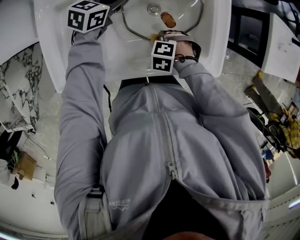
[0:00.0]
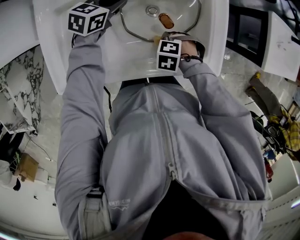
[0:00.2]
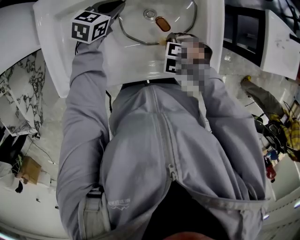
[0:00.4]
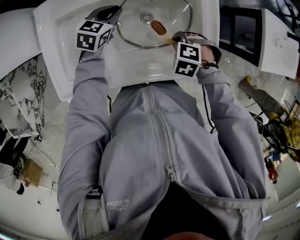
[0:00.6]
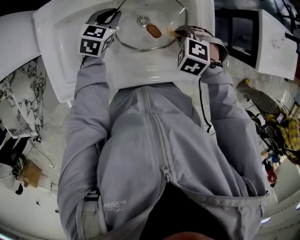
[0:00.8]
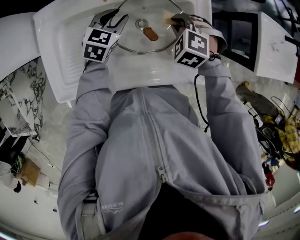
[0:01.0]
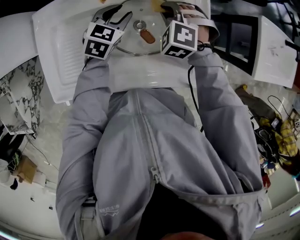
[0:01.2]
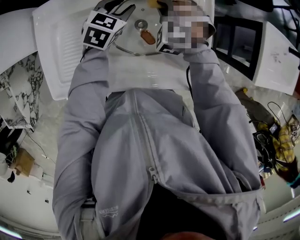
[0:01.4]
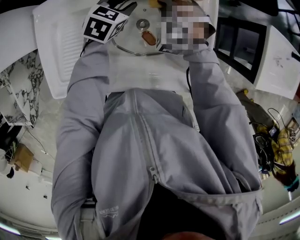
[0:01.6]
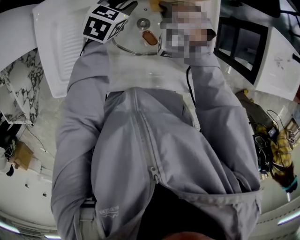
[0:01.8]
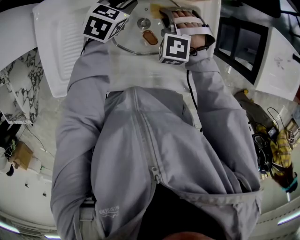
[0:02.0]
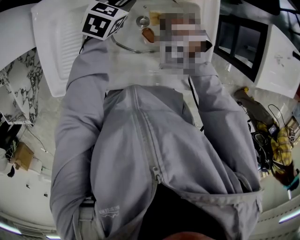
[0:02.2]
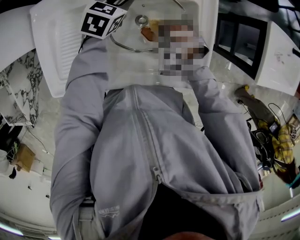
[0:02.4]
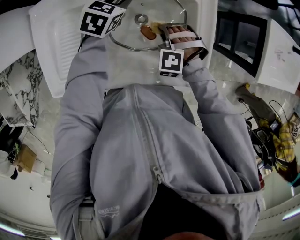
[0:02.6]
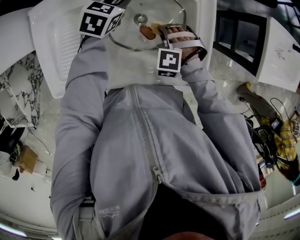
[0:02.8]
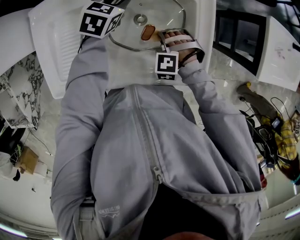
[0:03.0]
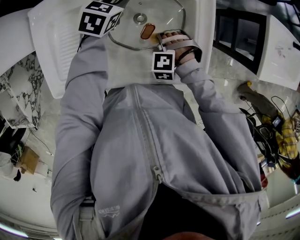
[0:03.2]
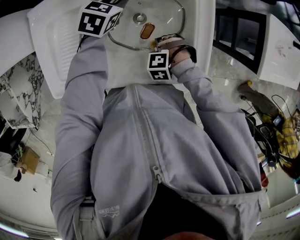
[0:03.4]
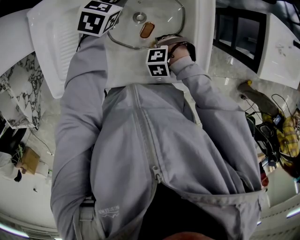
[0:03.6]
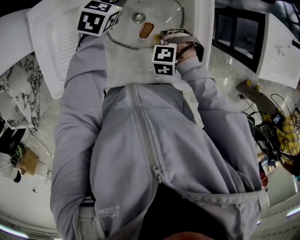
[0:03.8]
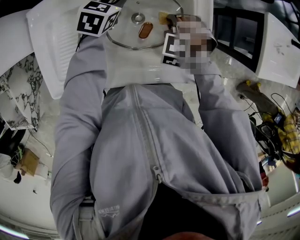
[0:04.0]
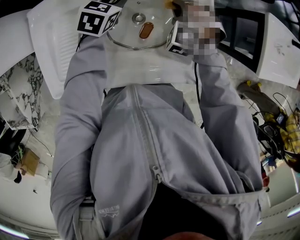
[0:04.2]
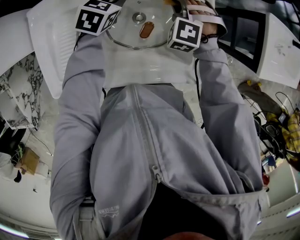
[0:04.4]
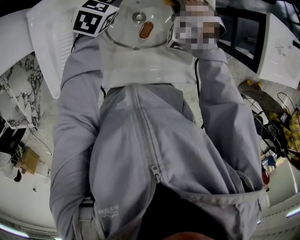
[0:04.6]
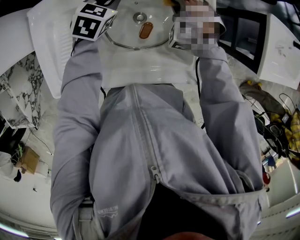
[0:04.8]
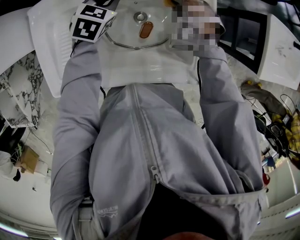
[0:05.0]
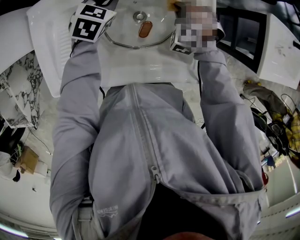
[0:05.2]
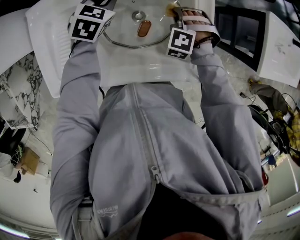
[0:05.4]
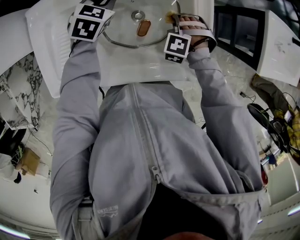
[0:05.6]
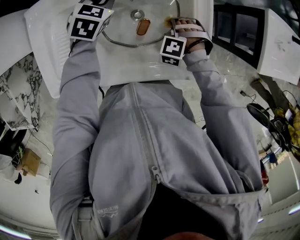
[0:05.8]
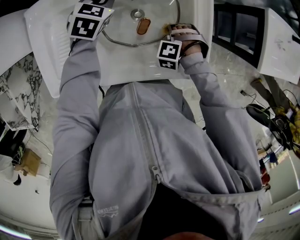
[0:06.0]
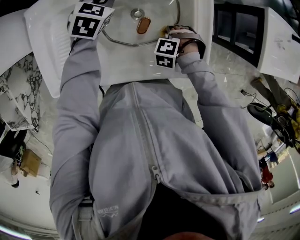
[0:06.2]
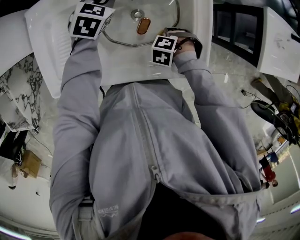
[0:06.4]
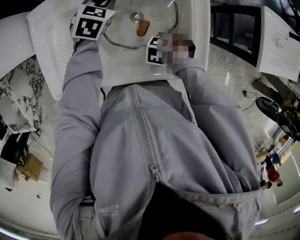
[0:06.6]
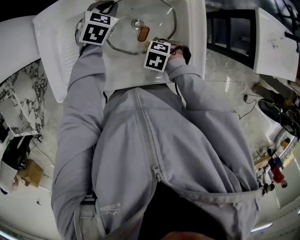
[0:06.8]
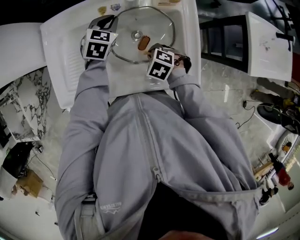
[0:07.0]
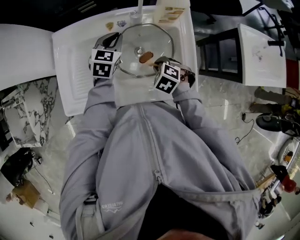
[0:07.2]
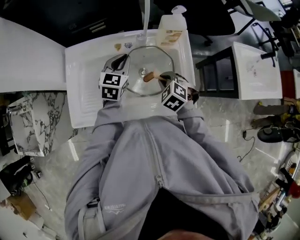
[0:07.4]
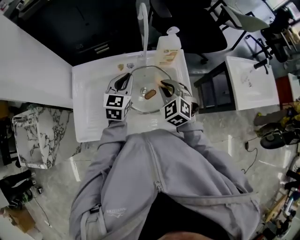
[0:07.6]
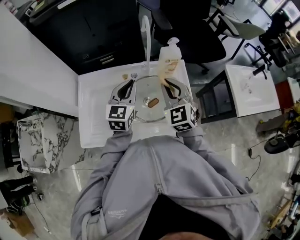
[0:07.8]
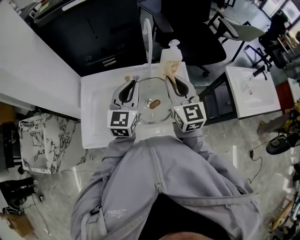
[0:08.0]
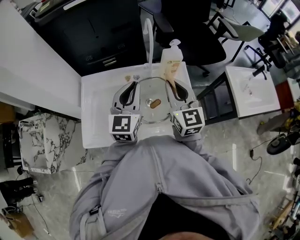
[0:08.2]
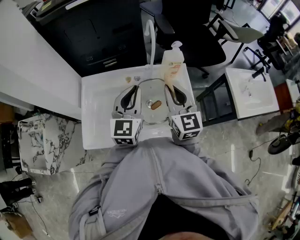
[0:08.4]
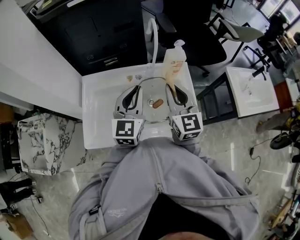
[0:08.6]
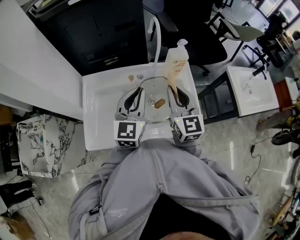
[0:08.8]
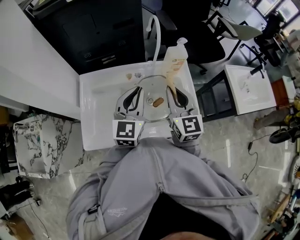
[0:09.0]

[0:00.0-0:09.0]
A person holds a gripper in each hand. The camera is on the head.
0:00.0 to 0:01.6: The right gripper shifts by about 25 cm, and angles its fingers upward, by approximately 40 degrees; the left gripper shifts by about 10 cm, rotates approximately 20 degrees, and opens.
0:01.6 to 0:03.0: The right gripper travels backward, downward and to the right by some 15 cm, and rotates about 20 degrees.
0:03.0 to 0:04.4: The right gripper changes place by roughly 15 cm, and swivels about 20 degrees.
0:04.4 to 0:06.0: The right gripper changes place by roughly 15 cm, and changes its angle by approximately 30 degrees.
0:06.0 to 0:07.6: The right gripper moves upward, roughly 25 cm, and points its fingers roughly 40 degrees further upward. The left gripper is displaced upward by roughly 15 cm, and rotates approximately 30 degrees.
0:07.6 to 0:09.0: The right gripper travels upward by roughly 10 cm, and angles its fingers upward, by roughly 30 degrees, while the left gripper travels upward and backward by some 10 cm.

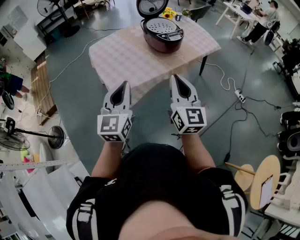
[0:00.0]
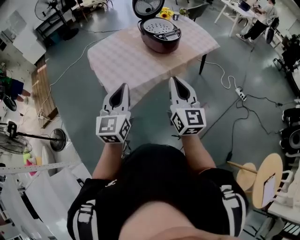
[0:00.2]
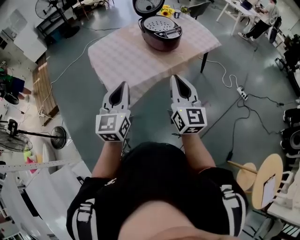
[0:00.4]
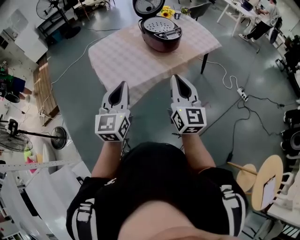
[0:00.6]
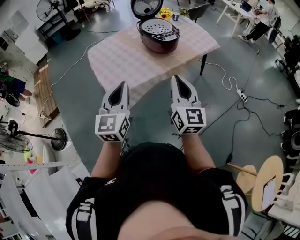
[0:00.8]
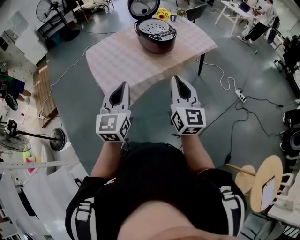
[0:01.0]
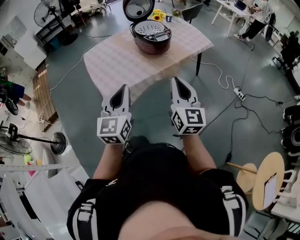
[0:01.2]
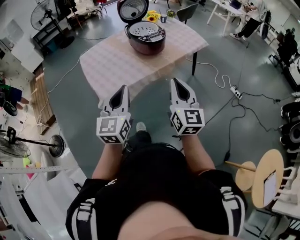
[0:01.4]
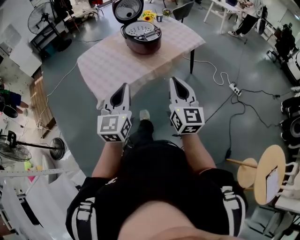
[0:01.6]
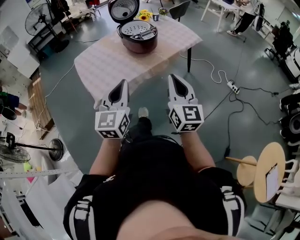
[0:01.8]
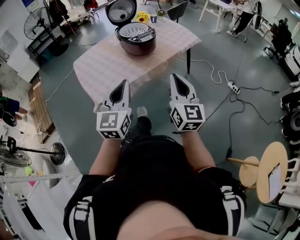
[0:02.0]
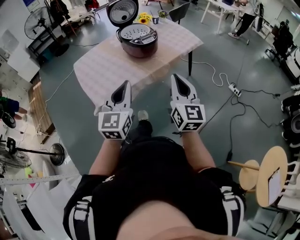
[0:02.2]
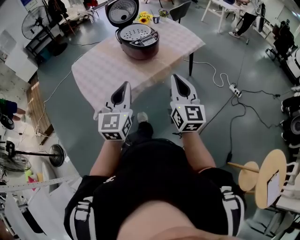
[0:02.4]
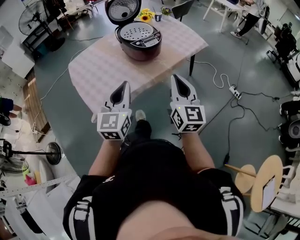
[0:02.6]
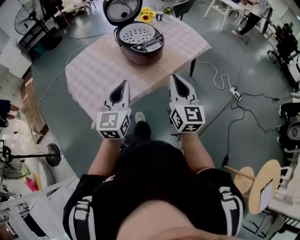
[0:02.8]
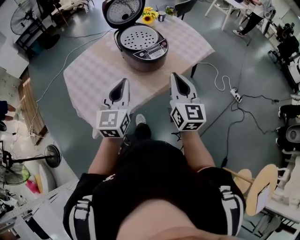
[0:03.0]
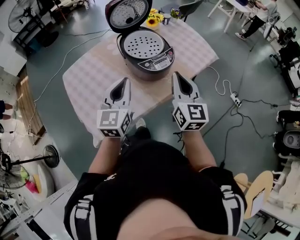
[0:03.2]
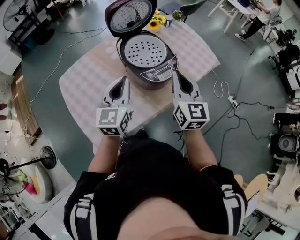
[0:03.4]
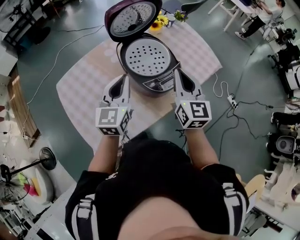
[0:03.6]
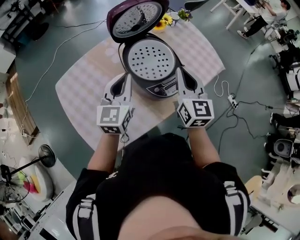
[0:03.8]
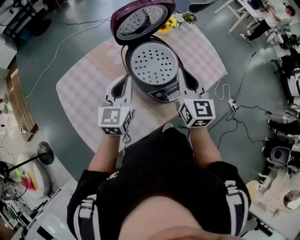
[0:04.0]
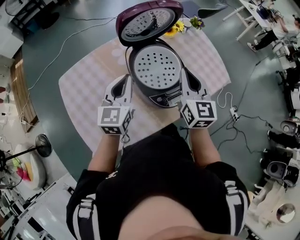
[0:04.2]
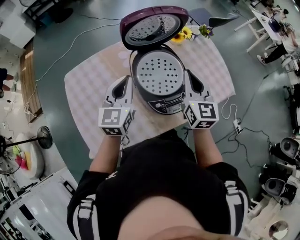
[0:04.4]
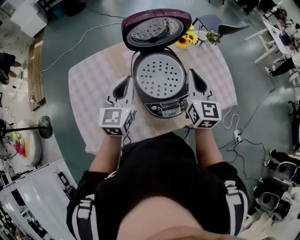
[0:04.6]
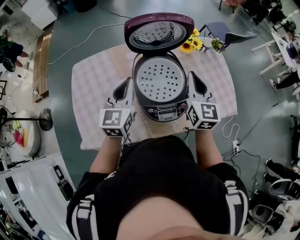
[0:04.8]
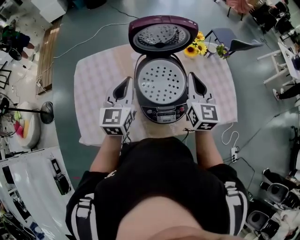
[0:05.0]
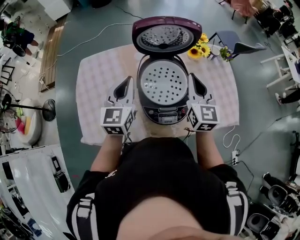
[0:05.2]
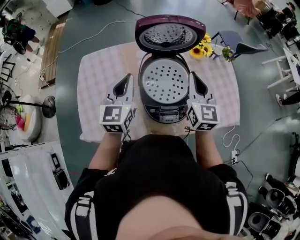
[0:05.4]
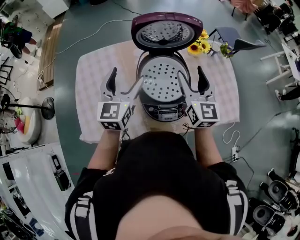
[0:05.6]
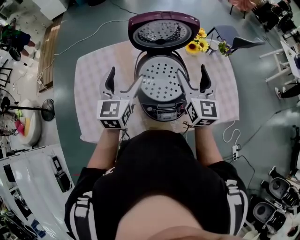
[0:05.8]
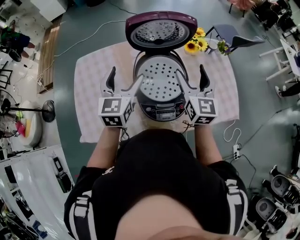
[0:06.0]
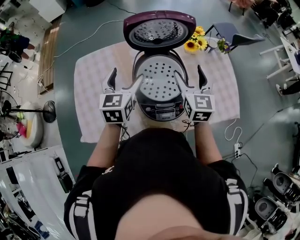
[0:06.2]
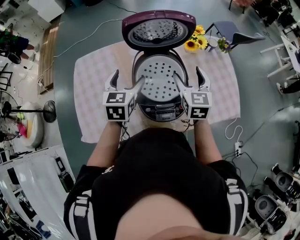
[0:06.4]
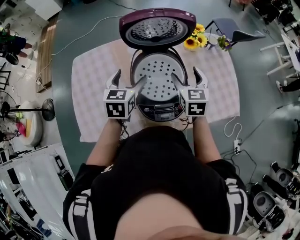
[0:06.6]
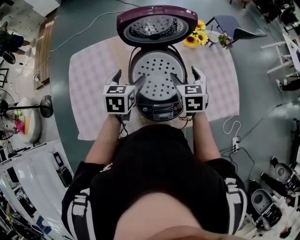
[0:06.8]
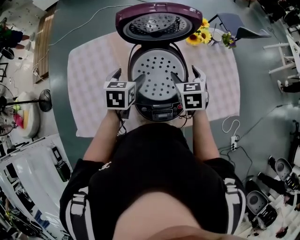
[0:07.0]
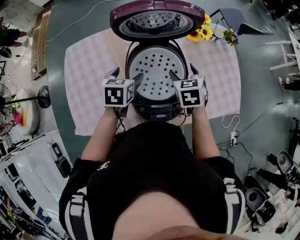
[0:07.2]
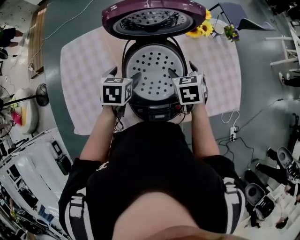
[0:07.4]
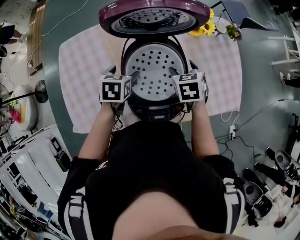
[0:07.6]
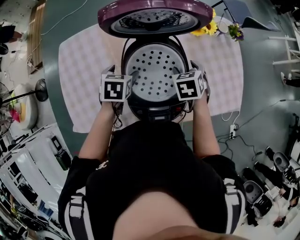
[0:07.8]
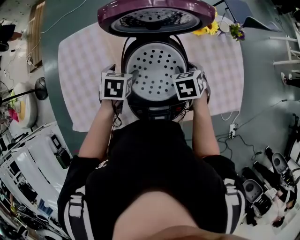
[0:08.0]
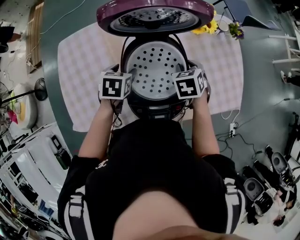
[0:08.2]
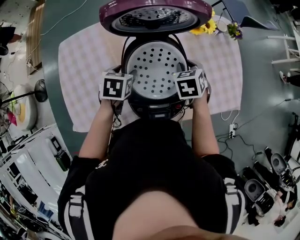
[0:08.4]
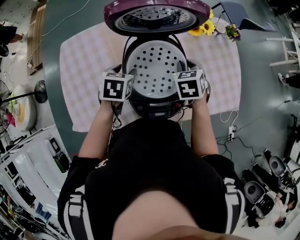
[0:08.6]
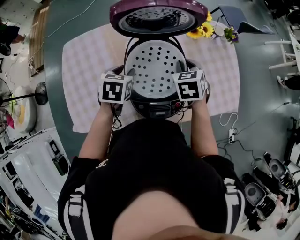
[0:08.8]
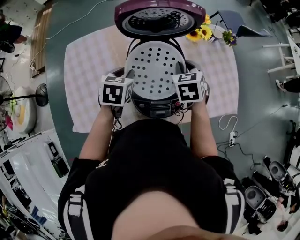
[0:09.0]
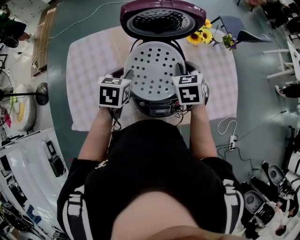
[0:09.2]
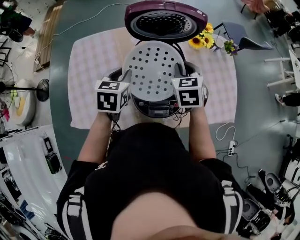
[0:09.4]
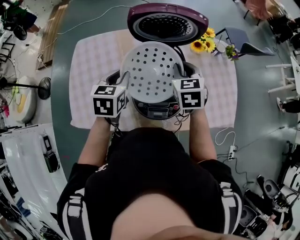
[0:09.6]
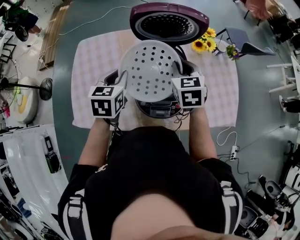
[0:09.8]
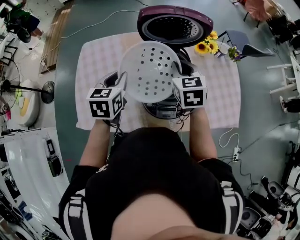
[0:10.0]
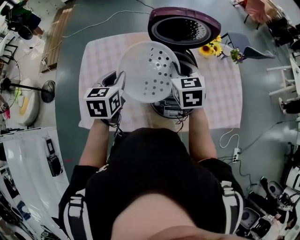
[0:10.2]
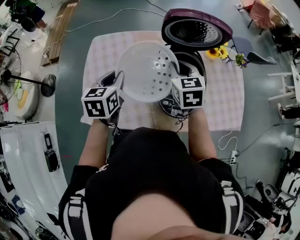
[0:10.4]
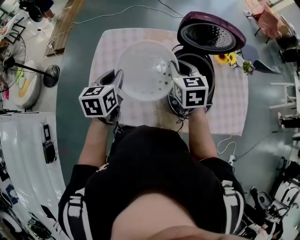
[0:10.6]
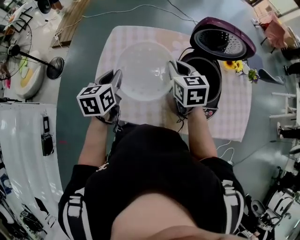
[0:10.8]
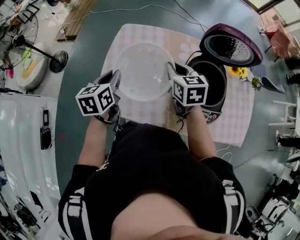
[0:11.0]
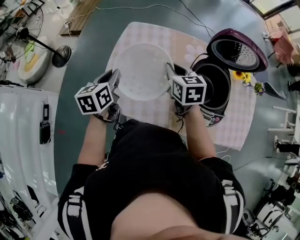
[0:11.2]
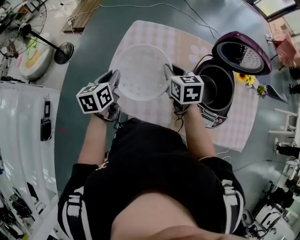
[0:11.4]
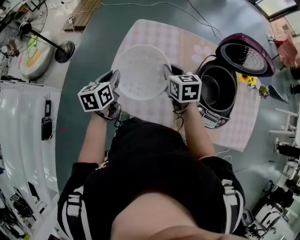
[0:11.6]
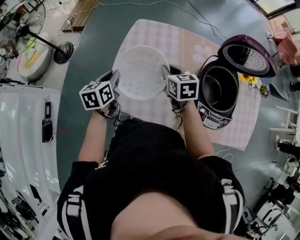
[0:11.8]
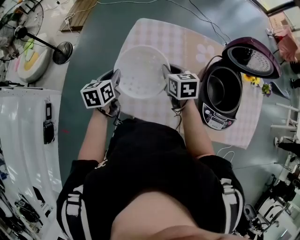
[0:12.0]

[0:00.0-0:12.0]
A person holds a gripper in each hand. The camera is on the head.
0:00.0 to 0:01.6: Both grippers move to the right, roughly 10 cm.
0:01.6 to 0:03.0: The grippers both shift forward by roughly 30 cm.
0:03.0 to 0:04.4: The two grippers go roughly 35 cm forward.
0:04.4 to 0:06.0: The right gripper is displaced forward by some 5 cm, and opens up. The left gripper opens its fingers.
0:06.0 to 0:07.6: Both grippers travel together downward, about 20 cm. The left gripper angles its fingers downward, by approximately 40 degrees, while the right gripper tilts its fingers roughly 50 degrees downward.
0:07.6 to 0:09.0: Both grippers move upward, roughly 5 cm. The right gripper closes. Meanwhile the left gripper closes up.
0:09.0 to 0:10.4: The left gripper goes approximately 20 cm to the left, upward and backward, and rotates approximately 30 degrees, while the right gripper goes roughly 15 cm to the left and upward, and turns by roughly 20 degrees.
0:10.4 to 0:12.0: Both grippers move to the left and downward, approximately 30 cm. The right gripper changes its angle by approximately 20 degrees. The left gripper swivels roughly 20 degrees.

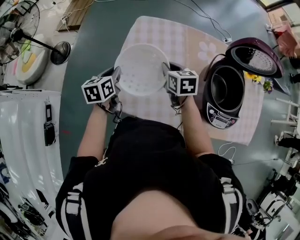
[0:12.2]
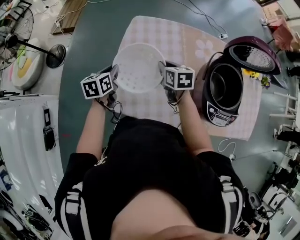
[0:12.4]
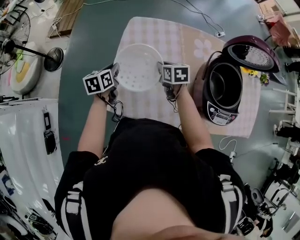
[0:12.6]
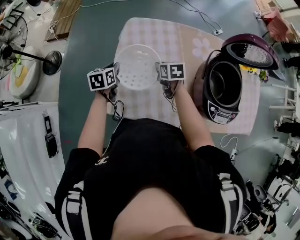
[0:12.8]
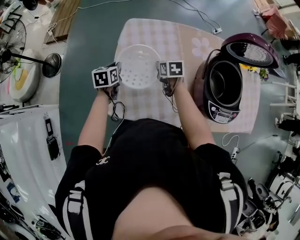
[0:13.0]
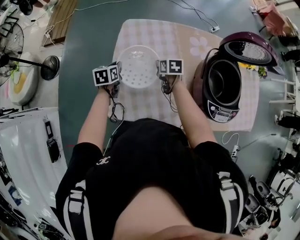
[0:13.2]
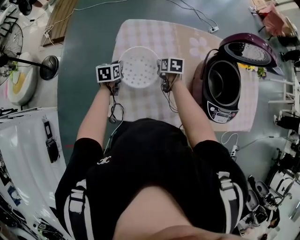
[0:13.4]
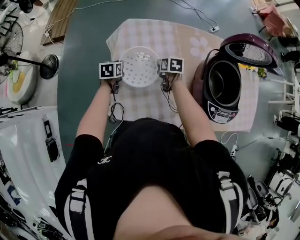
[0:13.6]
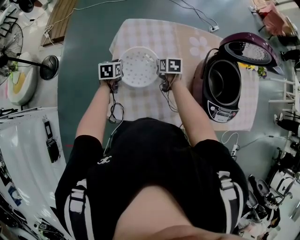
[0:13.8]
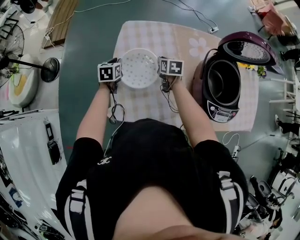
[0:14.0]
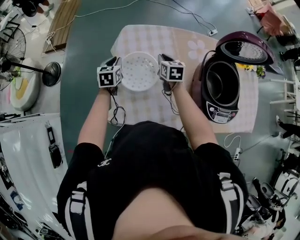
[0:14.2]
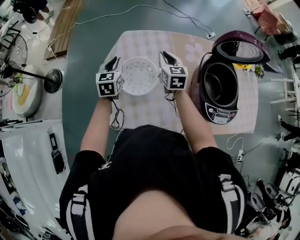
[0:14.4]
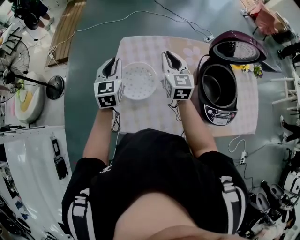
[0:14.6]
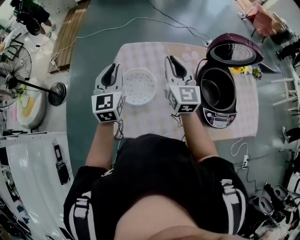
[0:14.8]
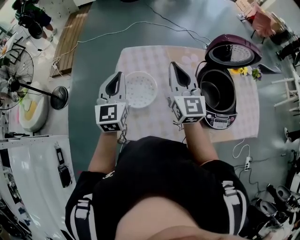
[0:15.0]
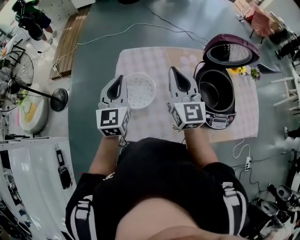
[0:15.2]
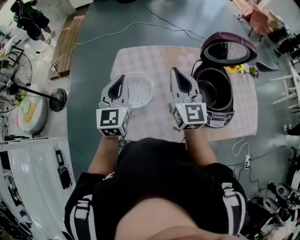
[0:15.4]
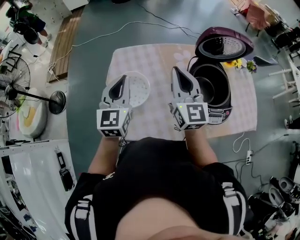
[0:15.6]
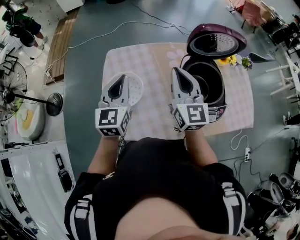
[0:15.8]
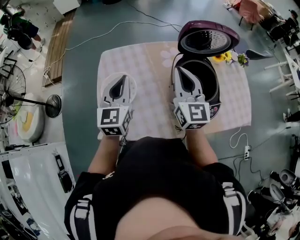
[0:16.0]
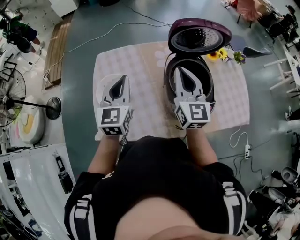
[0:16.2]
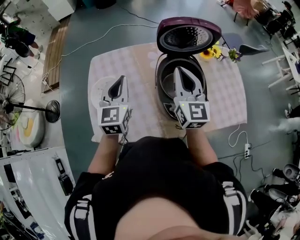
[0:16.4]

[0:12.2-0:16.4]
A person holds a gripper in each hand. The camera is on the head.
0:12.2 to 0:13.6: Both grippers move downward and forward, about 20 cm. The right gripper rotates roughly 20 degrees.
0:13.6 to 0:15.0: The two grippers go roughly 35 cm upward. The right gripper angles its fingers upward, by roughly 60 degrees. The left gripper tilts its fingers about 40 degrees upward.
0:15.0 to 0:16.4: Both grippers move to the right, about 20 cm.
